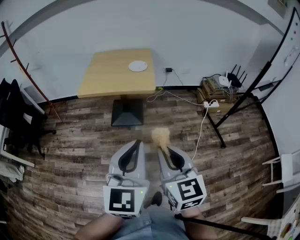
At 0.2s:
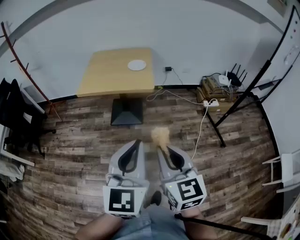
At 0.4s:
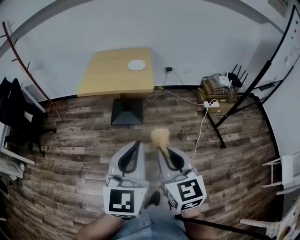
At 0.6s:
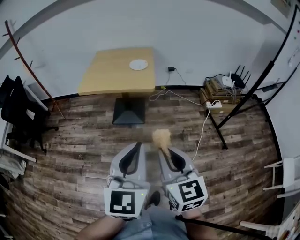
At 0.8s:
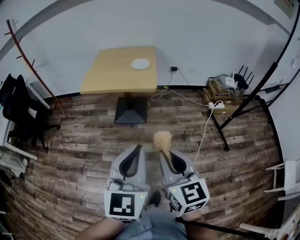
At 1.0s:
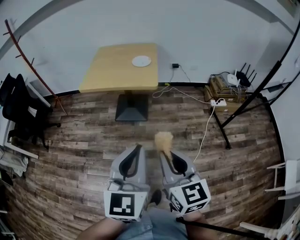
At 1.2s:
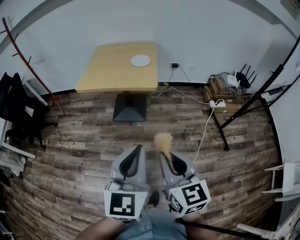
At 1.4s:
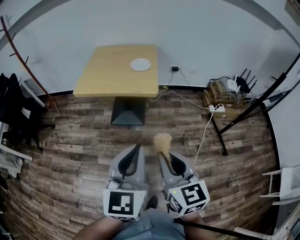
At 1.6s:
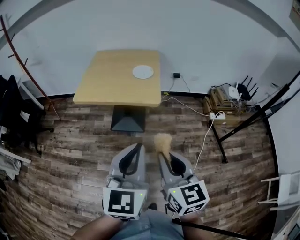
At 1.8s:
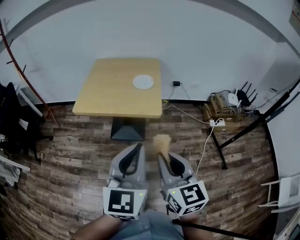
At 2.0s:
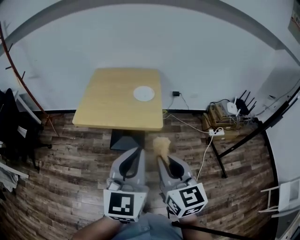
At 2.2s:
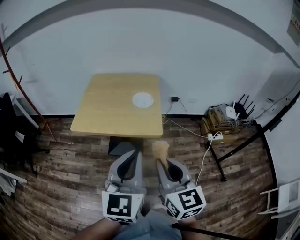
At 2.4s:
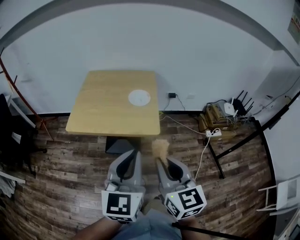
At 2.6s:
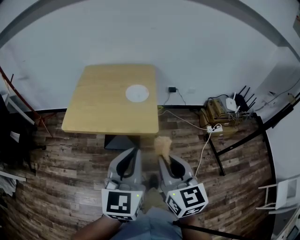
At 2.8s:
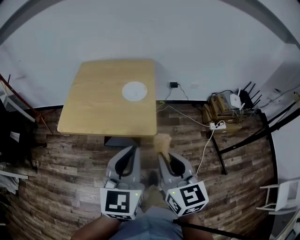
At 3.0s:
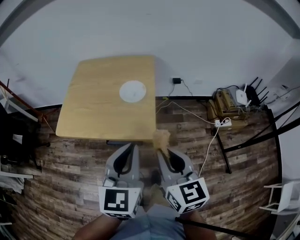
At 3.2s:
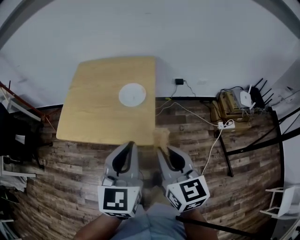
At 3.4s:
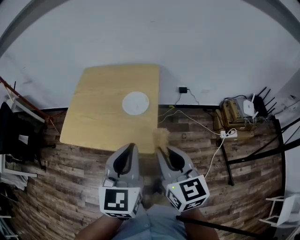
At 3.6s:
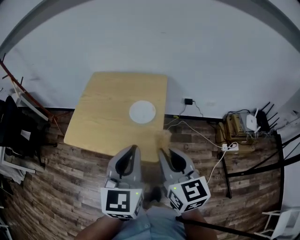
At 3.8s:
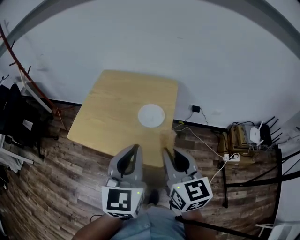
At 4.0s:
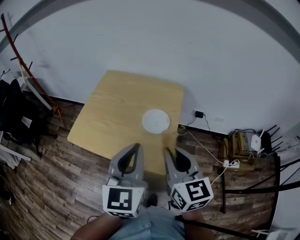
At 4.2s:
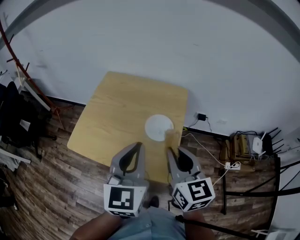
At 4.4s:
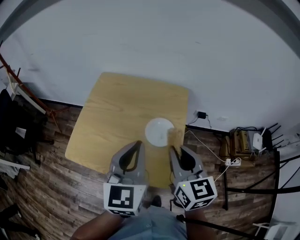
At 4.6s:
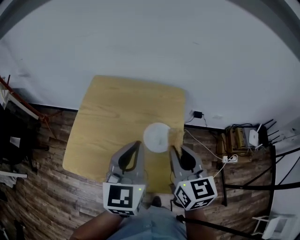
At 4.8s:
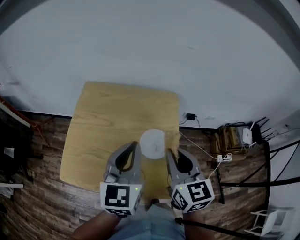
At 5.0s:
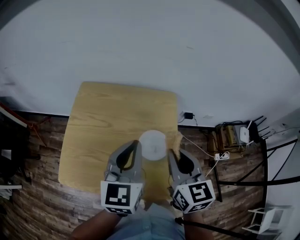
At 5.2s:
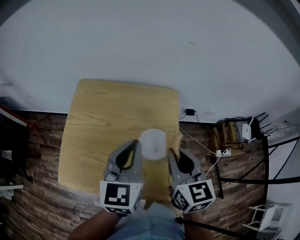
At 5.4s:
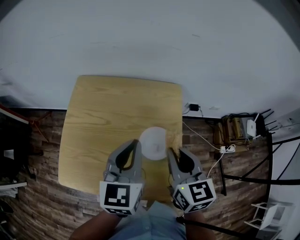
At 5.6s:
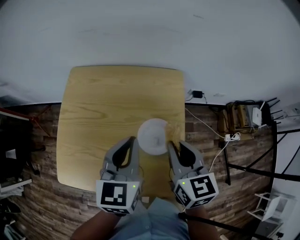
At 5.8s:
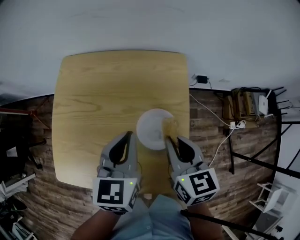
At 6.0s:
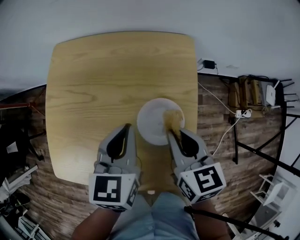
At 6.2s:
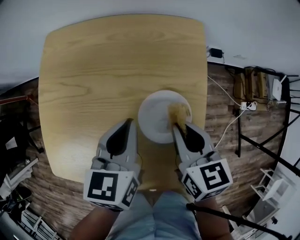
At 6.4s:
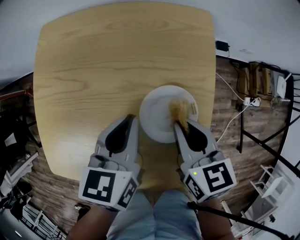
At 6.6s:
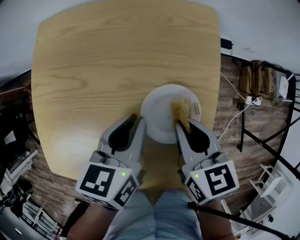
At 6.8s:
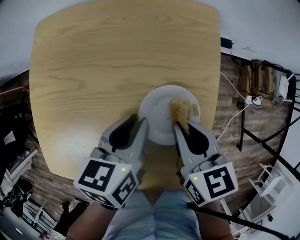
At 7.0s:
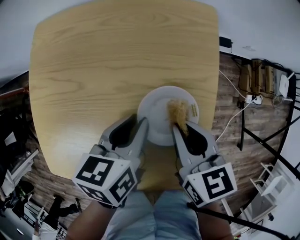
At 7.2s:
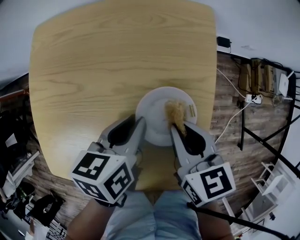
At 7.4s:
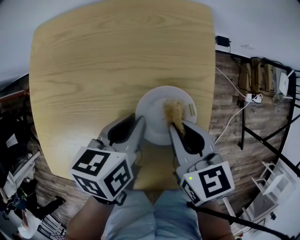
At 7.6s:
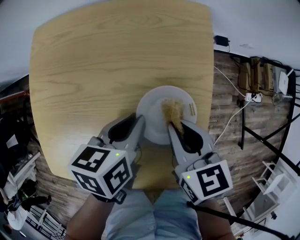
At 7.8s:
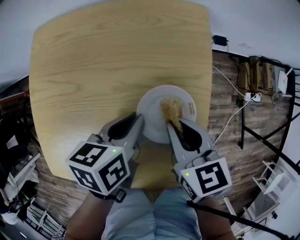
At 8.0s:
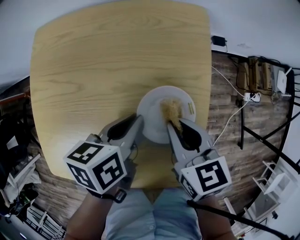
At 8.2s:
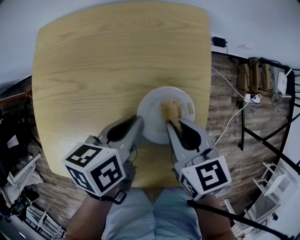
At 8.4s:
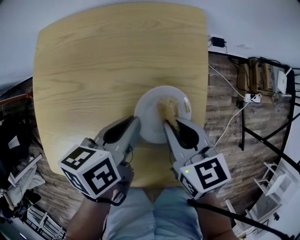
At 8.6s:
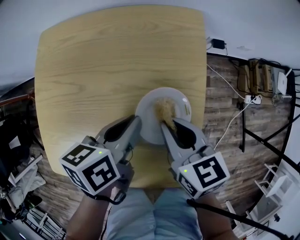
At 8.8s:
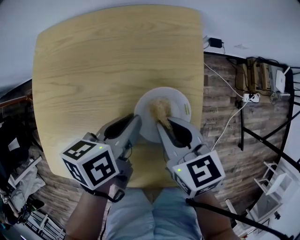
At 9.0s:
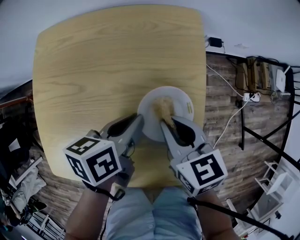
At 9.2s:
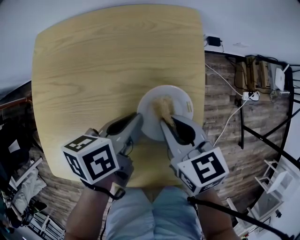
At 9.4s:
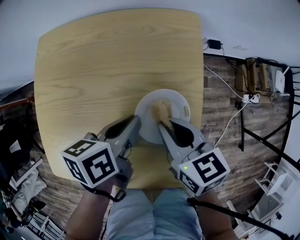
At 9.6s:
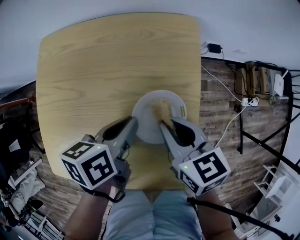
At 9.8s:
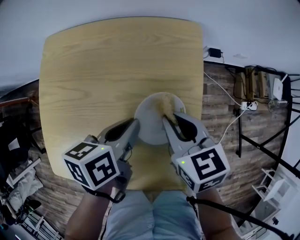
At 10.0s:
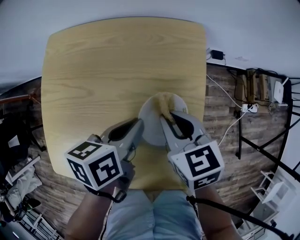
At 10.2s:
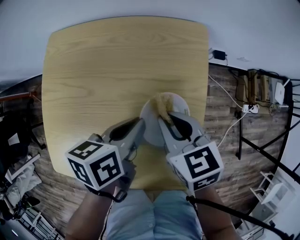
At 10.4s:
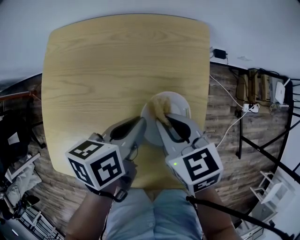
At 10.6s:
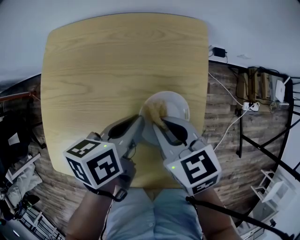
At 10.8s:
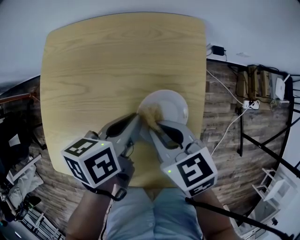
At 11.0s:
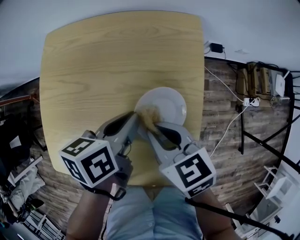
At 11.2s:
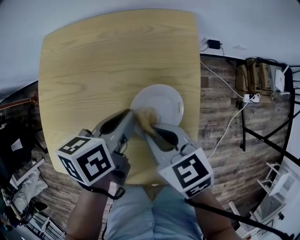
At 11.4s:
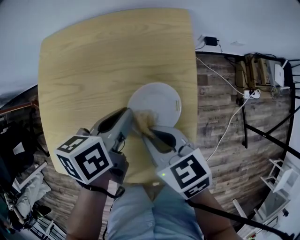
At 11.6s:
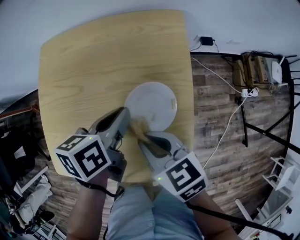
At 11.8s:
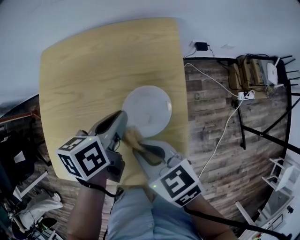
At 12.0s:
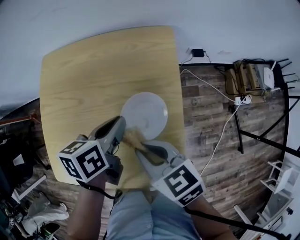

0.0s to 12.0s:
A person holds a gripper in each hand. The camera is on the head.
0.0s to 1.6s: Both grippers move forward, approximately 15 cm.
1.6s to 3.0s: Both grippers travel together forward, about 25 cm.
3.0s to 4.4s: The two grippers go roughly 25 cm forward.
4.4s to 6.0s: Both grippers move downward and forward, roughly 20 cm. The left gripper changes its angle by about 30 degrees. Meanwhile the right gripper turns by approximately 20 degrees.
6.0s to 7.6s: The right gripper shifts some 5 cm downward. The left gripper is displaced downward by approximately 10 cm, and swivels roughly 30 degrees.
7.6s to 10.4s: The grippers stay close to where they were, moving slightly.
10.4s to 12.0s: The right gripper travels backward by about 10 cm.

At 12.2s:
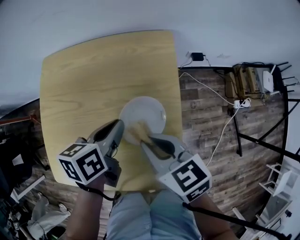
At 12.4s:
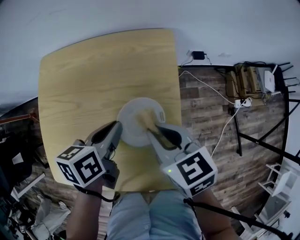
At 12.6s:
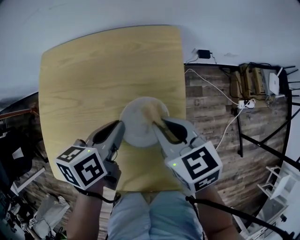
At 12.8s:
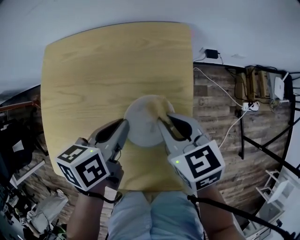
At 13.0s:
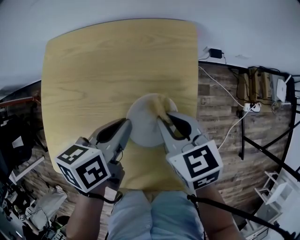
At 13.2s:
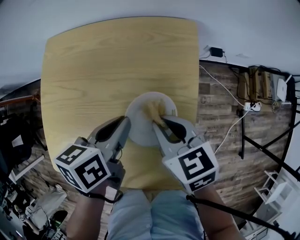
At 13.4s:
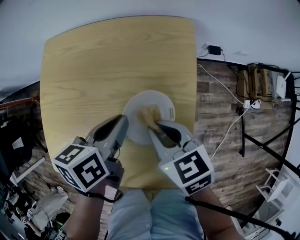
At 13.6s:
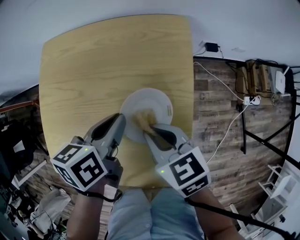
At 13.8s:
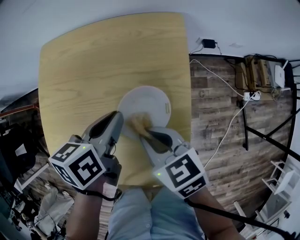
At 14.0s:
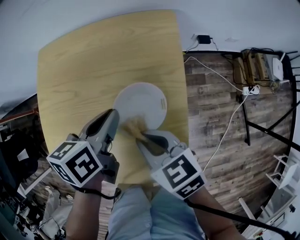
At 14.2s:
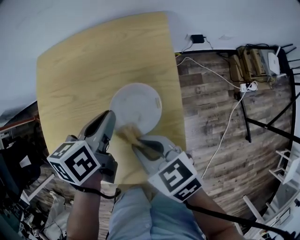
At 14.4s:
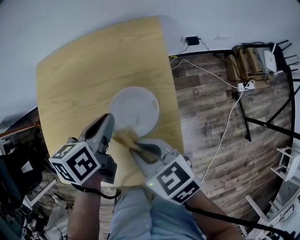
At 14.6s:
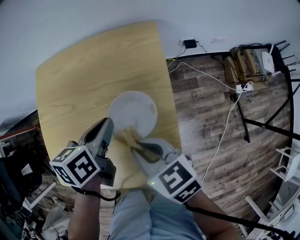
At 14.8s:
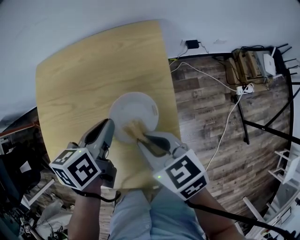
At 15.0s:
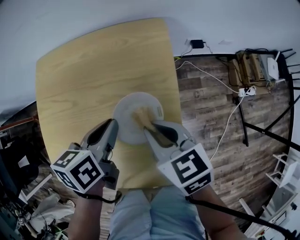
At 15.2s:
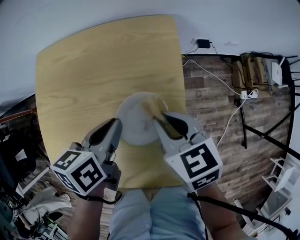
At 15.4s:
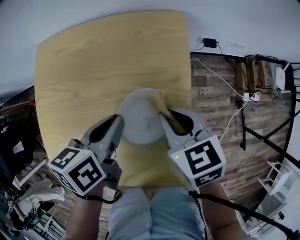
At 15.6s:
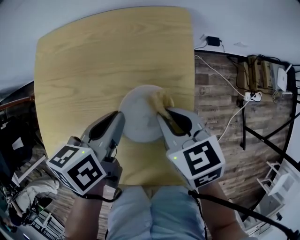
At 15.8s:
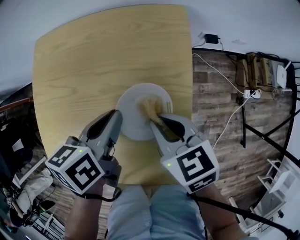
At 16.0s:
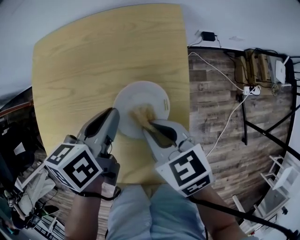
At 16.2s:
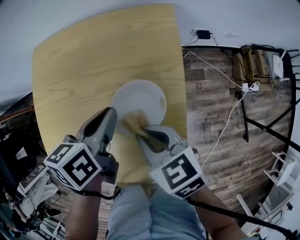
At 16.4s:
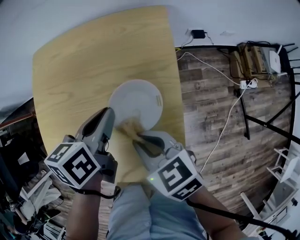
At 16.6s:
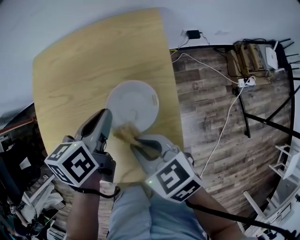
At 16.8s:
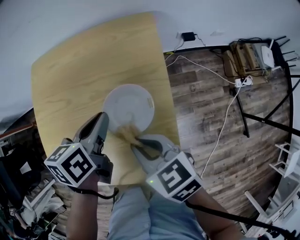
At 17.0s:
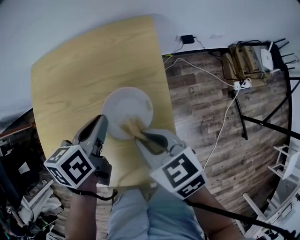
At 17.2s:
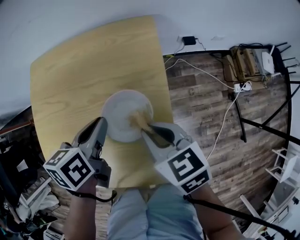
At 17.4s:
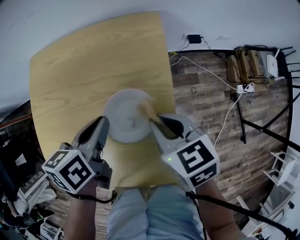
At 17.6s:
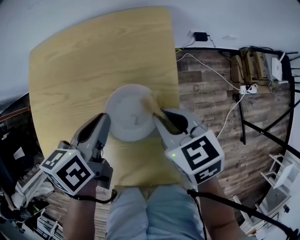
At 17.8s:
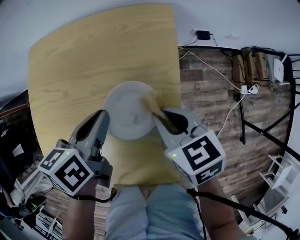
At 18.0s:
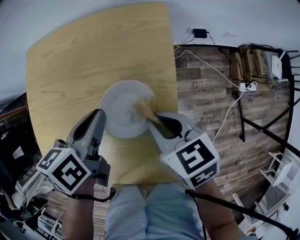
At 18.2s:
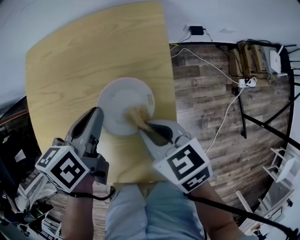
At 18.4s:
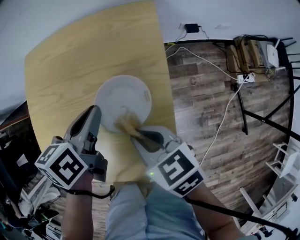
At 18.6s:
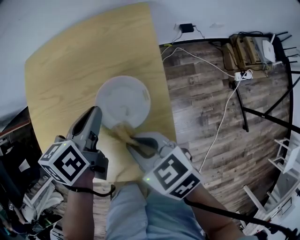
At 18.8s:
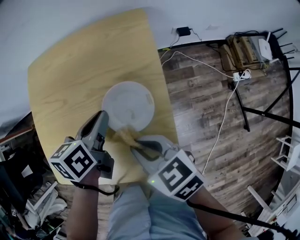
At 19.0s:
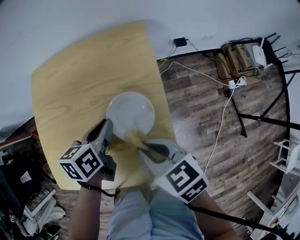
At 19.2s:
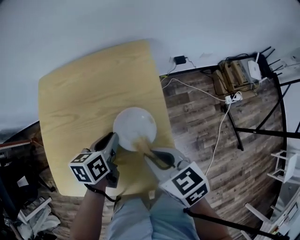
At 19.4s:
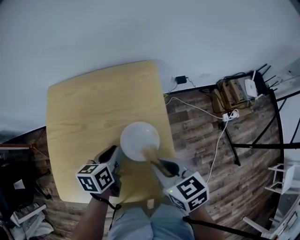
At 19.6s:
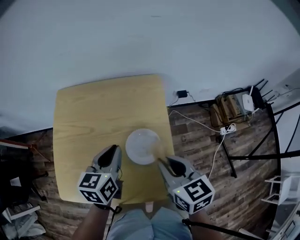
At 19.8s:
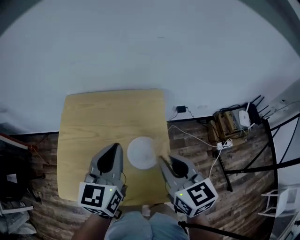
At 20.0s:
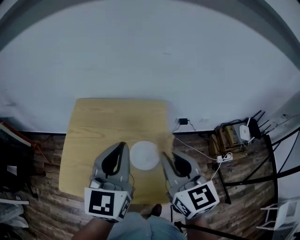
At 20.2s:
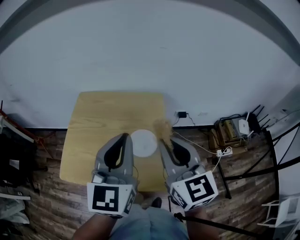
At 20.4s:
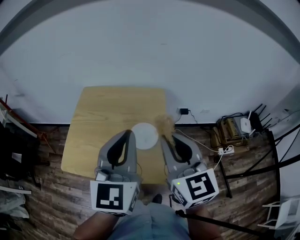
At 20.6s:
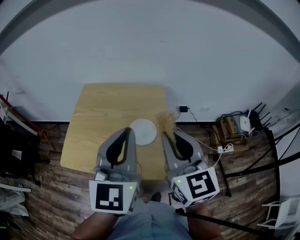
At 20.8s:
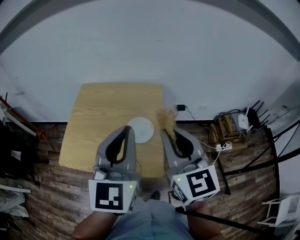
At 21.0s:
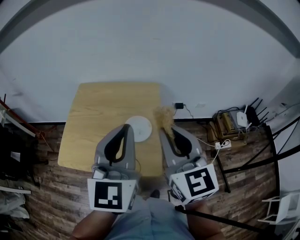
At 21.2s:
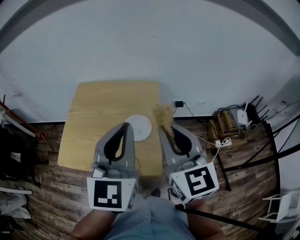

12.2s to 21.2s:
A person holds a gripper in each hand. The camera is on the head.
13.8s to 15.2s: The right gripper moves to the right, approximately 5 cm.
15.2s to 16.6s: The right gripper is displaced backward and to the left by roughly 10 cm.
16.6s to 18.2s: The right gripper shifts about 5 cm to the right.
18.2s to 19.8s: Both grippers move upward, about 20 cm. The left gripper tips its fingers upward by roughly 30 degrees. The right gripper swivels some 30 degrees.
19.8s to 21.2s: The left gripper moves backward and upward, some 20 cm. The right gripper moves upward and backward, about 15 cm, and changes its angle by roughly 20 degrees.

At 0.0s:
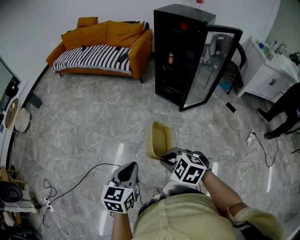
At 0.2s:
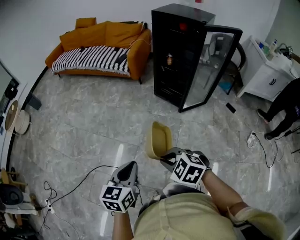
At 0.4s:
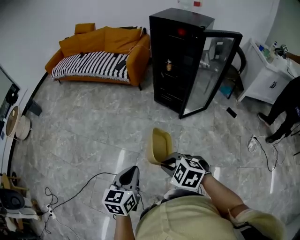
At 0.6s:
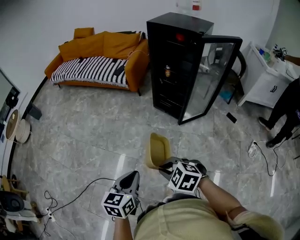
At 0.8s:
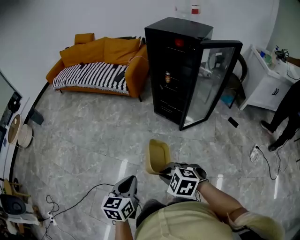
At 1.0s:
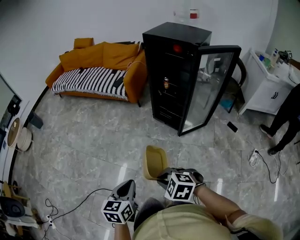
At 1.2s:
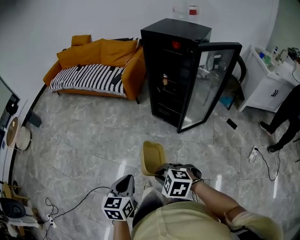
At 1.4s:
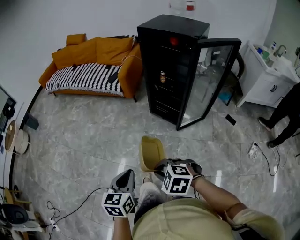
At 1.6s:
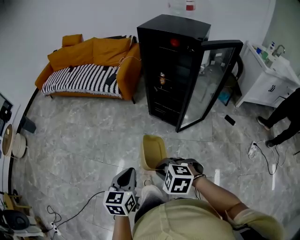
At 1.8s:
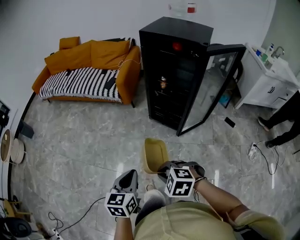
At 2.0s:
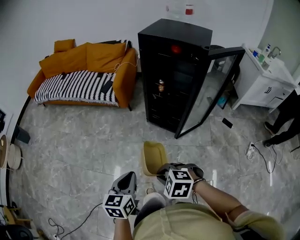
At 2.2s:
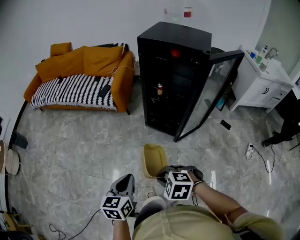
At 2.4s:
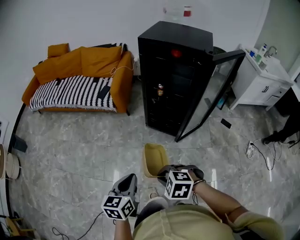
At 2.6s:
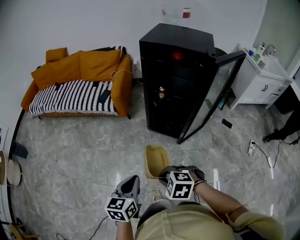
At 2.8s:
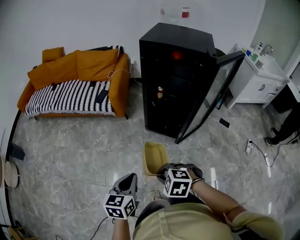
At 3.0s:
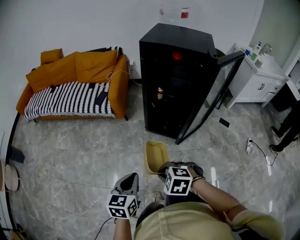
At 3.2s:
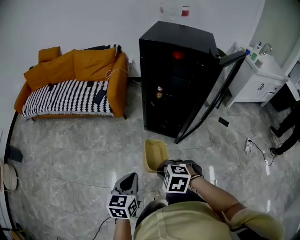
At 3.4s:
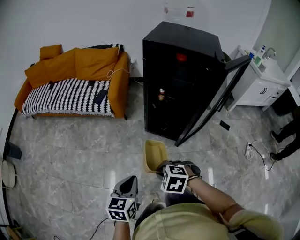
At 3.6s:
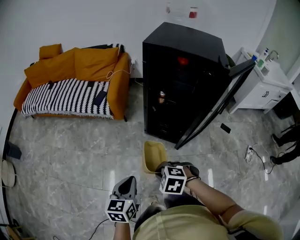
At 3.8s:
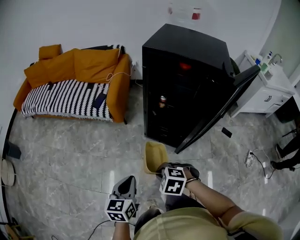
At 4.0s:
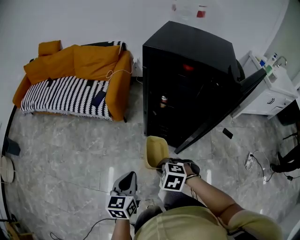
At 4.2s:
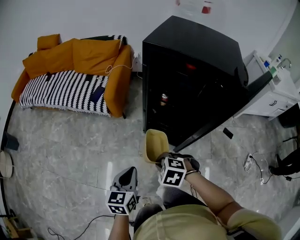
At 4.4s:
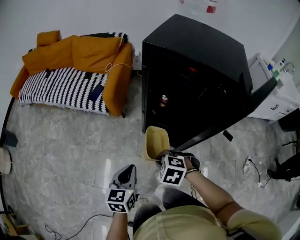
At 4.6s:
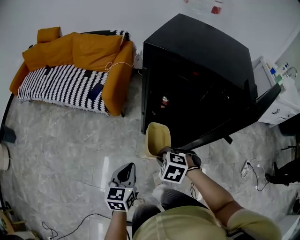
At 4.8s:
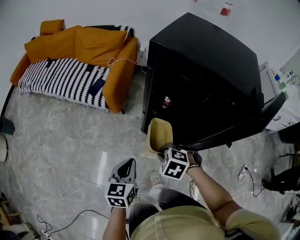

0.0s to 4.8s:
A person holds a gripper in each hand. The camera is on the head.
0.0s to 1.6s: The grippers both shift forward and to the right by some 20 cm.
1.6s to 3.2s: Both grippers travel together forward, some 20 cm.
3.2s to 4.8s: The grippers both shift forward and to the right by about 25 cm.
